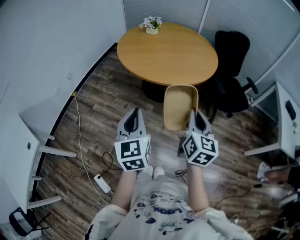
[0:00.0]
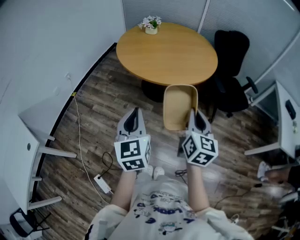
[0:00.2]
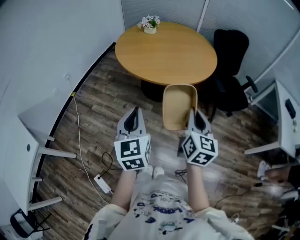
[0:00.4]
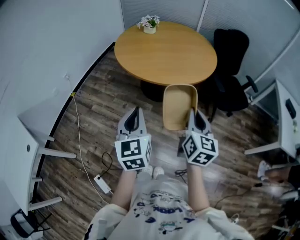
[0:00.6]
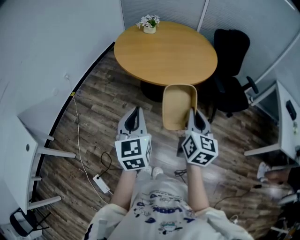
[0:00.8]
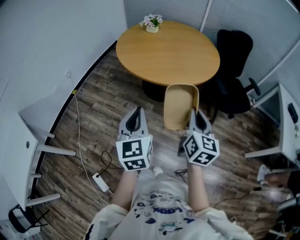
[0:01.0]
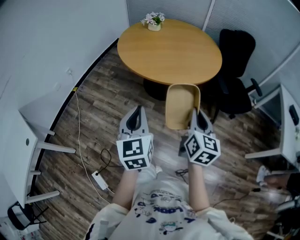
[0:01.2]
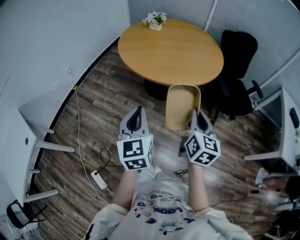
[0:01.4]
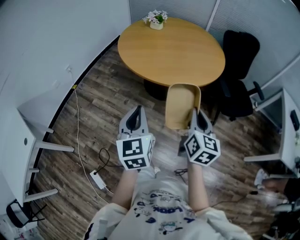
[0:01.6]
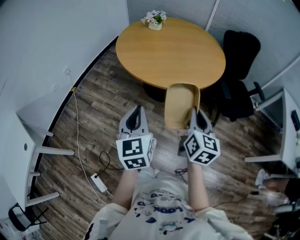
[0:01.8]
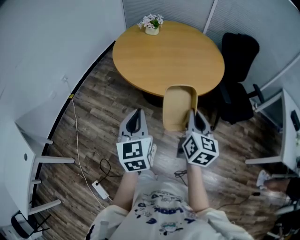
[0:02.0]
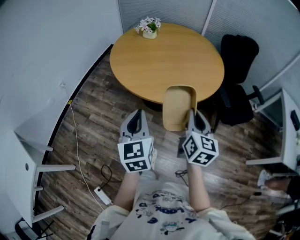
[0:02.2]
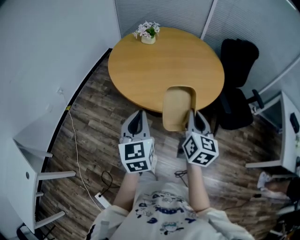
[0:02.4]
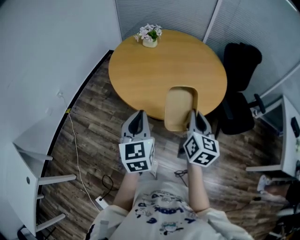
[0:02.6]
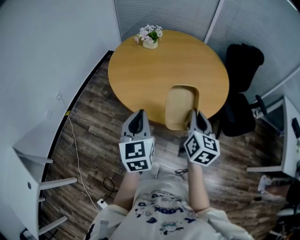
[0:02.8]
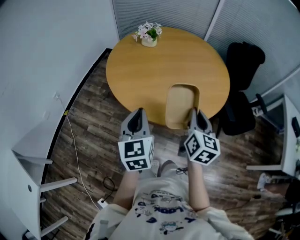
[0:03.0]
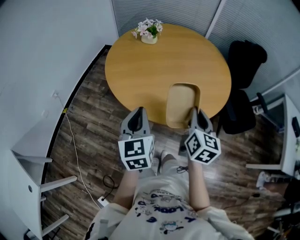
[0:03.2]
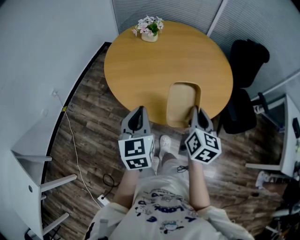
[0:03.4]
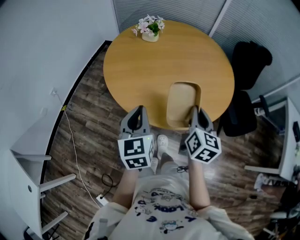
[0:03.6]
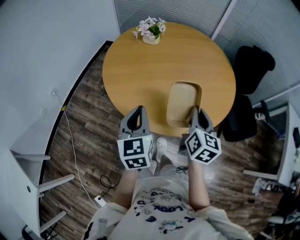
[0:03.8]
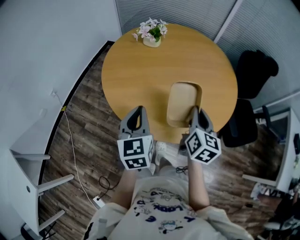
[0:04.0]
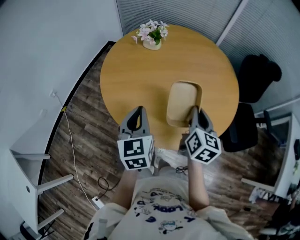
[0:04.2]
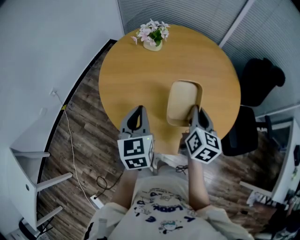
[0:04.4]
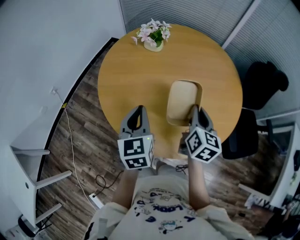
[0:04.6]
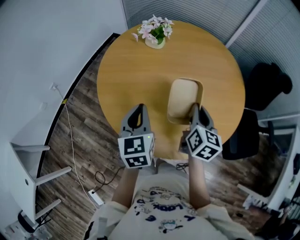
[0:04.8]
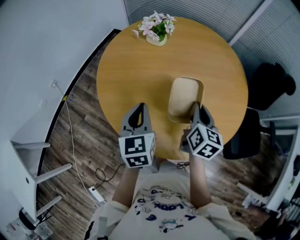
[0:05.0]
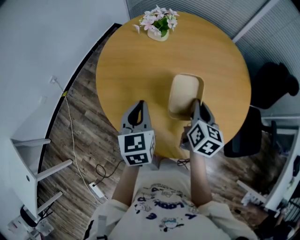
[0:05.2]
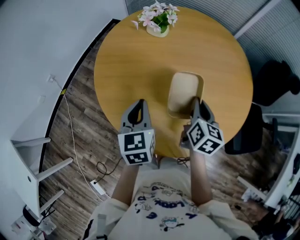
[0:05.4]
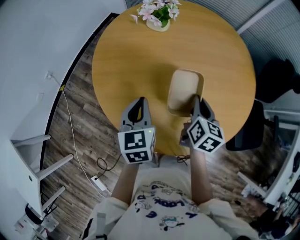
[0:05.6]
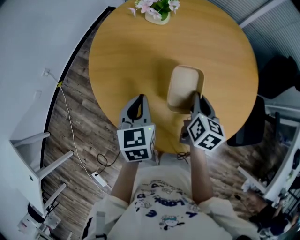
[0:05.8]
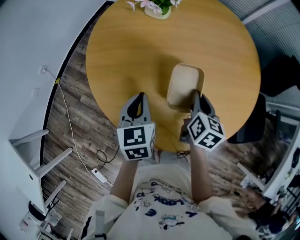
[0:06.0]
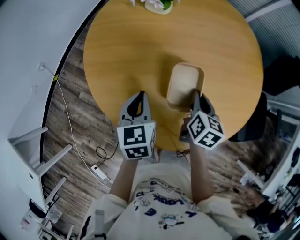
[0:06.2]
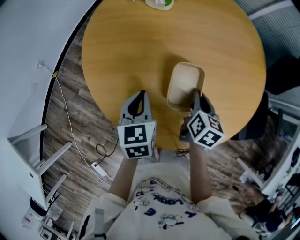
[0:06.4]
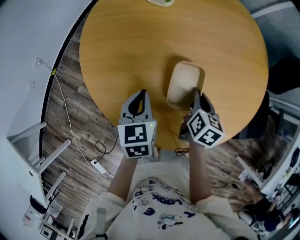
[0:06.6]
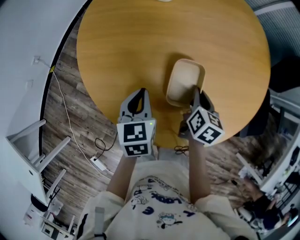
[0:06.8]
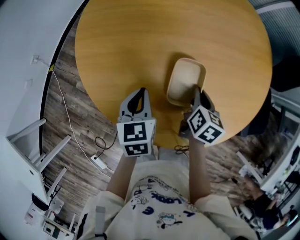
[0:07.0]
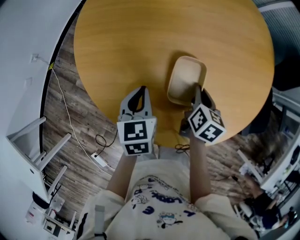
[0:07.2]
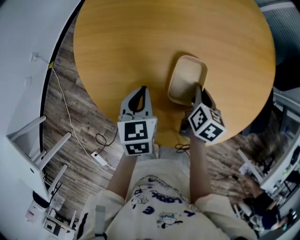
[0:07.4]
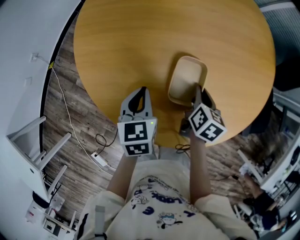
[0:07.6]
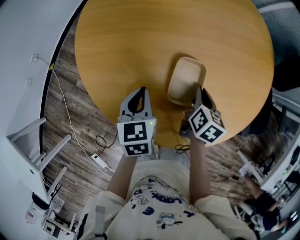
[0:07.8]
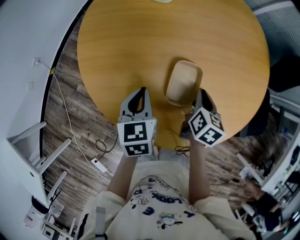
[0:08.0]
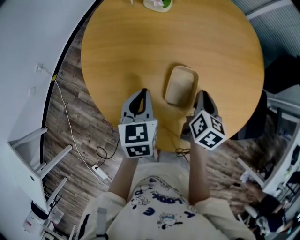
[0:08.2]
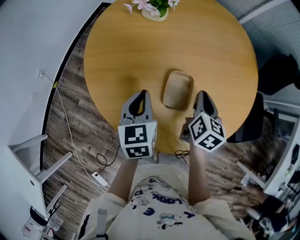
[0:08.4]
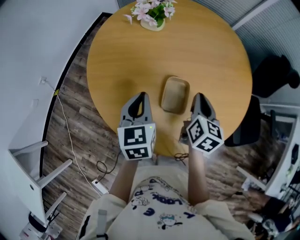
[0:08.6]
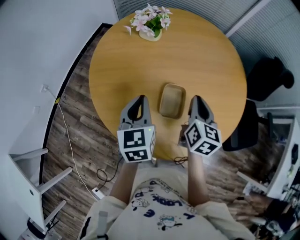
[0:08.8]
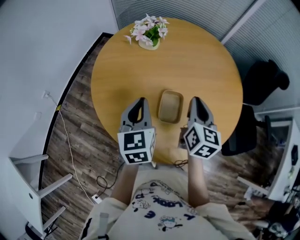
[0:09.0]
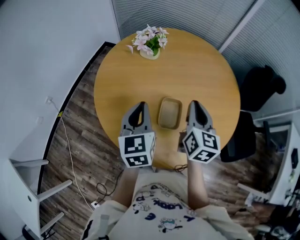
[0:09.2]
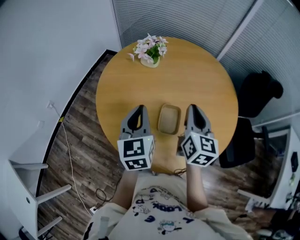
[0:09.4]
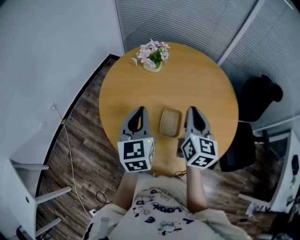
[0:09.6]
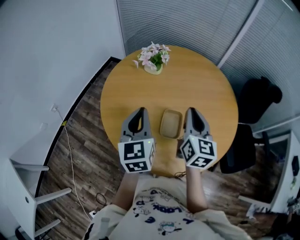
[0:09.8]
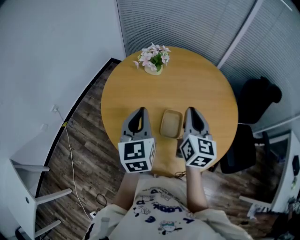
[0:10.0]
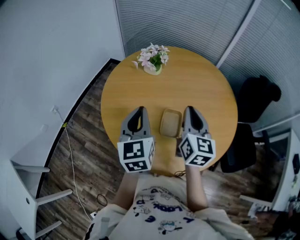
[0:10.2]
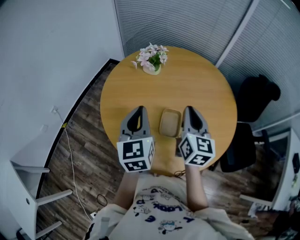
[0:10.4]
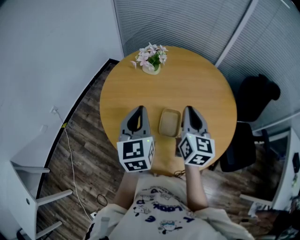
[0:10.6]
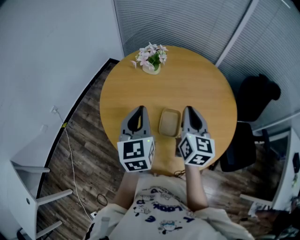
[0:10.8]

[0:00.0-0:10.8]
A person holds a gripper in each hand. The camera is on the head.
0:00.0 to 0:01.6: Both grippers move forward, approximately 5 cm.
0:01.6 to 0:03.0: The two grippers go approximately 25 cm forward.
0:03.0 to 0:04.6: The two grippers go about 20 cm forward.
0:04.6 to 0:06.2: The grippers both shift downward by some 15 cm.
0:06.2 to 0:07.8: The grippers both shift downward by roughly 5 cm.
0:07.8 to 0:09.2: The grippers both shift upward by about 20 cm. The right gripper tilts its fingers about 30 degrees upward, while the left gripper changes its angle by some 30 degrees.
0:09.2 to 0:10.8: The left gripper heads upward, covering roughly 5 cm.

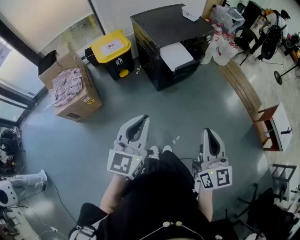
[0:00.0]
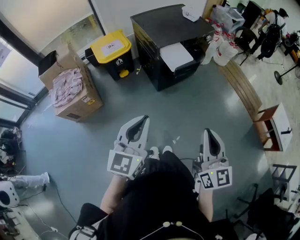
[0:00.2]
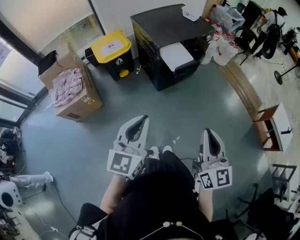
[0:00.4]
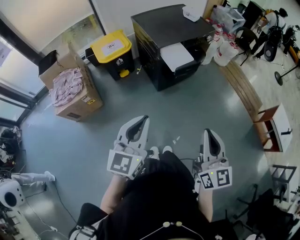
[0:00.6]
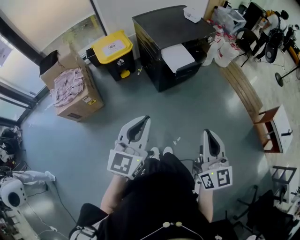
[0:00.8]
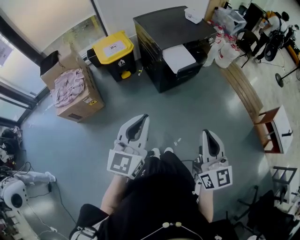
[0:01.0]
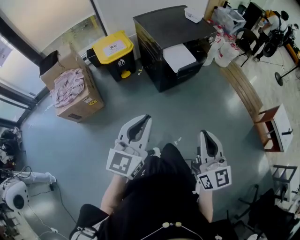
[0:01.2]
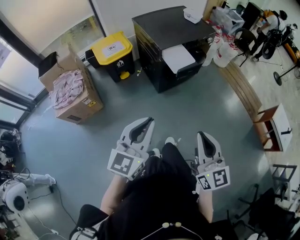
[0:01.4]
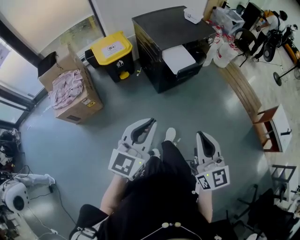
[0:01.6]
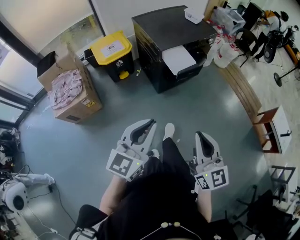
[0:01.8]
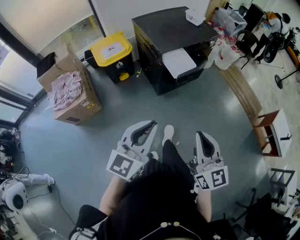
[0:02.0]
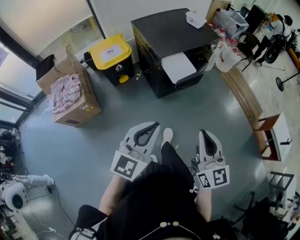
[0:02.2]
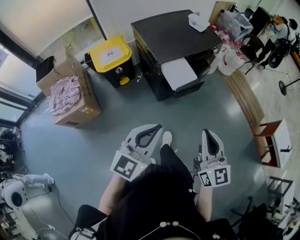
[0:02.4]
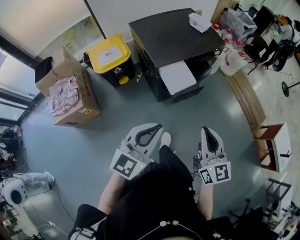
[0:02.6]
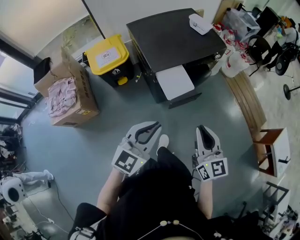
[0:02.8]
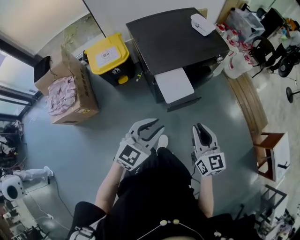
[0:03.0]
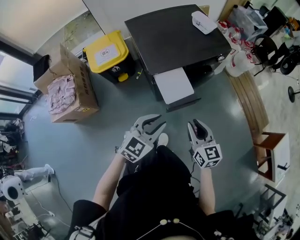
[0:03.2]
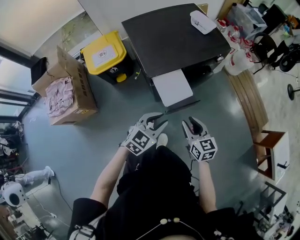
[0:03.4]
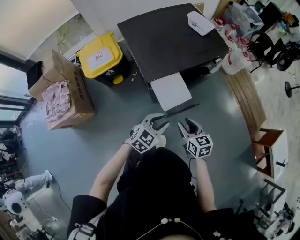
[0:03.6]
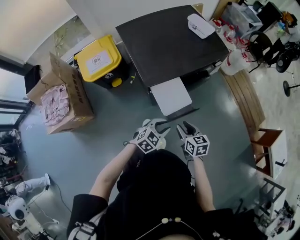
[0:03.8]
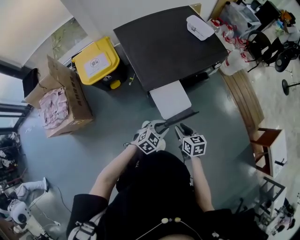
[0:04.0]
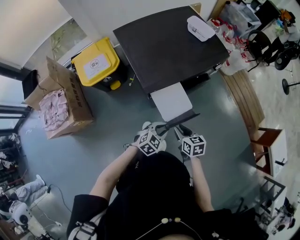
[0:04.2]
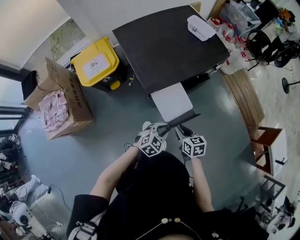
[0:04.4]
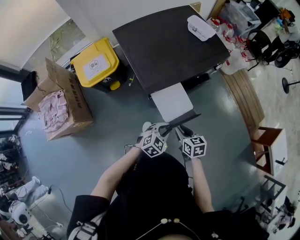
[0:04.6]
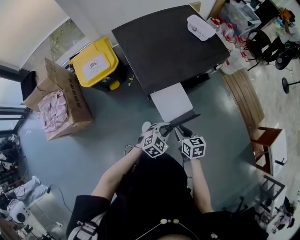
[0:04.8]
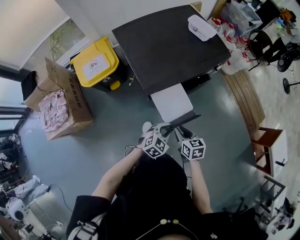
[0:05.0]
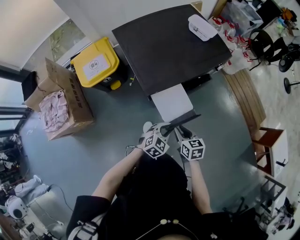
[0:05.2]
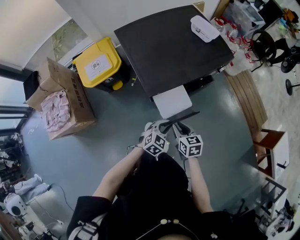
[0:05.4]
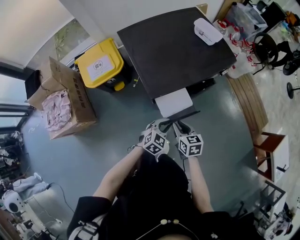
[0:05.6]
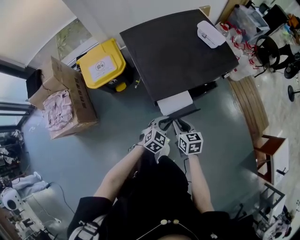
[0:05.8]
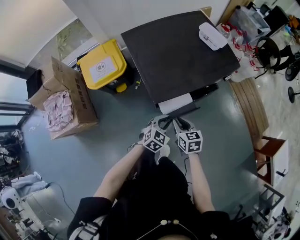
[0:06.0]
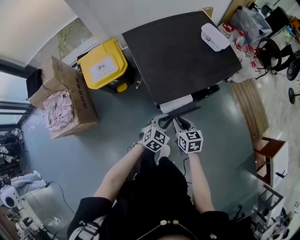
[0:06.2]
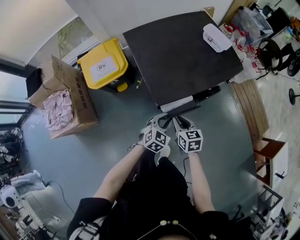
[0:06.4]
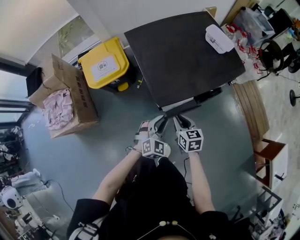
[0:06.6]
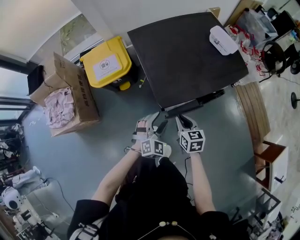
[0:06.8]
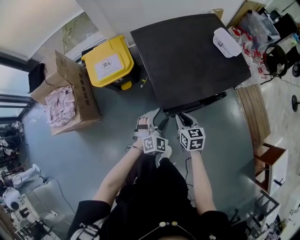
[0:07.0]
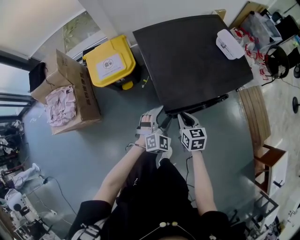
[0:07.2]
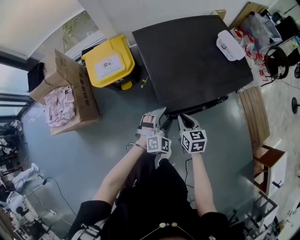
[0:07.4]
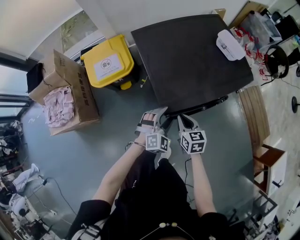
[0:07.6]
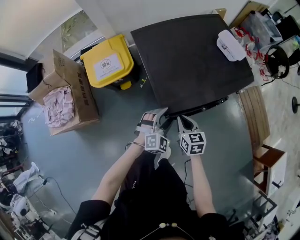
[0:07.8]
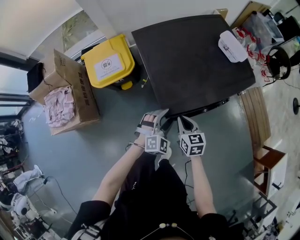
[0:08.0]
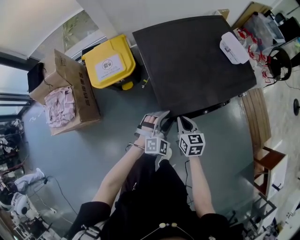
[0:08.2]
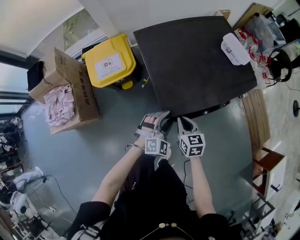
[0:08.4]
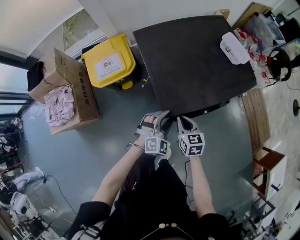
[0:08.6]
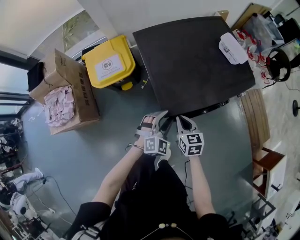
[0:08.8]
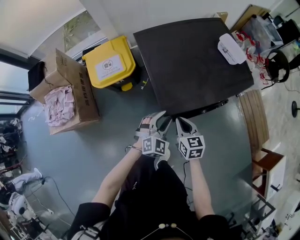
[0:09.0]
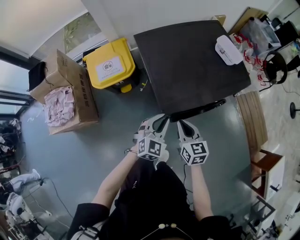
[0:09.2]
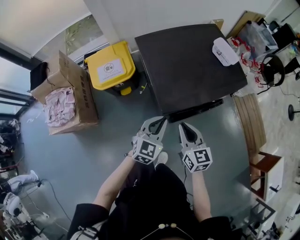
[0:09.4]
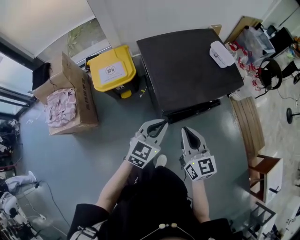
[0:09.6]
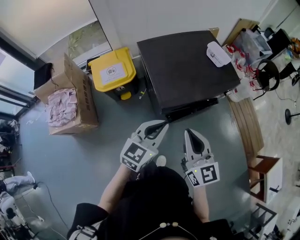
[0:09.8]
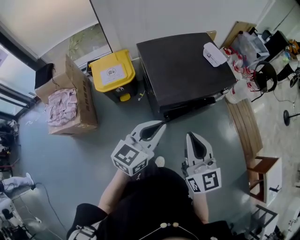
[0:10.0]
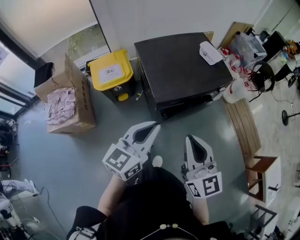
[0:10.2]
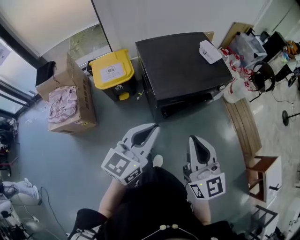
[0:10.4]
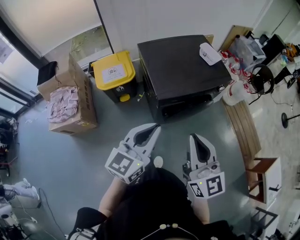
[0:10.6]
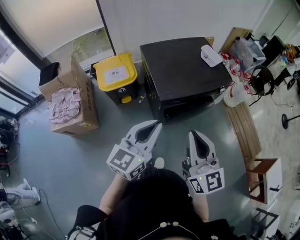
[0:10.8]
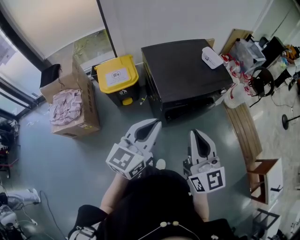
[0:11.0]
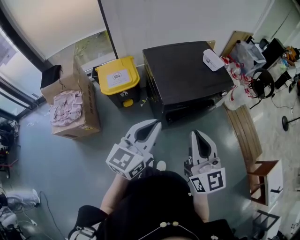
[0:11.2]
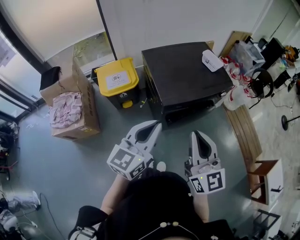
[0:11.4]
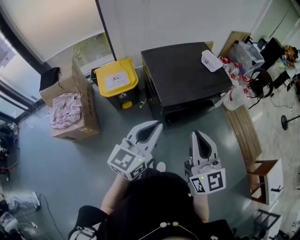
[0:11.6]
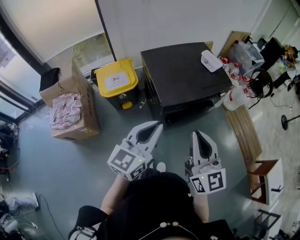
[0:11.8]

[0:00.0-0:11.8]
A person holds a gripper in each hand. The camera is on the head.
0:00.0 to 0:01.4: The grippers stay close to where they were, moving slightly.
0:01.4 to 0:03.0: The two grippers go approximately 30 cm forward.
0:03.0 to 0:04.4: The two grippers go some 25 cm downward and forward. The right gripper angles its fingers downward, by about 30 degrees; the left gripper rotates approximately 30 degrees.
0:04.4 to 0:06.0: The left gripper moves forward, approximately 10 cm. The right gripper is displaced forward and to the left by roughly 10 cm.
0:06.0 to 0:07.4: The left gripper heads forward and to the left, covering roughly 10 cm, changes its angle by about 30 degrees, and opens its fingers. Meanwhile the right gripper goes roughly 5 cm forward.
0:07.4 to 0:08.8: The left gripper closes its fingers.
0:08.8 to 0:10.4: Both grippers travel together upward and backward, about 40 cm. The right gripper angles its fingers upward, by roughly 40 degrees. Meanwhile the left gripper rotates around the line of its fingers by roughly 50 degrees, counterclockwise from behind, and closes.
0:10.4 to 0:11.8: The grippers move only a little.

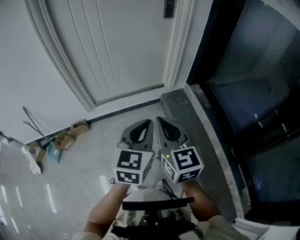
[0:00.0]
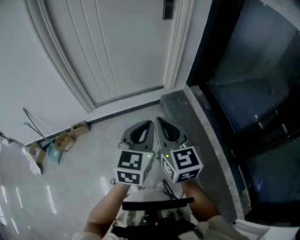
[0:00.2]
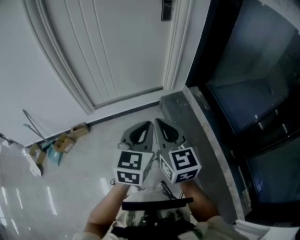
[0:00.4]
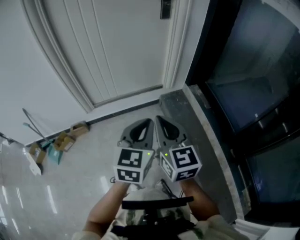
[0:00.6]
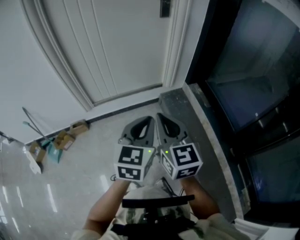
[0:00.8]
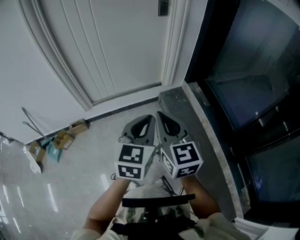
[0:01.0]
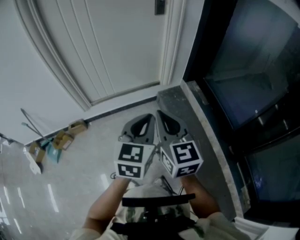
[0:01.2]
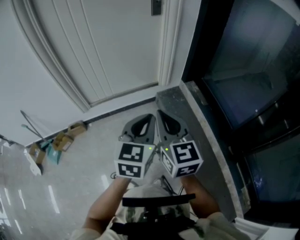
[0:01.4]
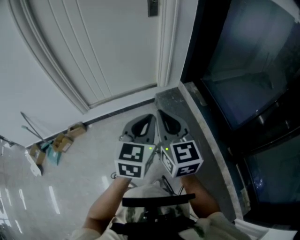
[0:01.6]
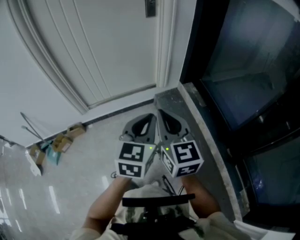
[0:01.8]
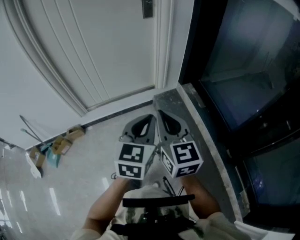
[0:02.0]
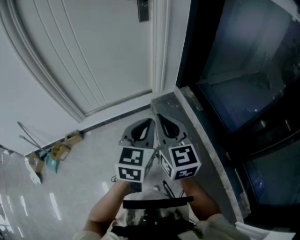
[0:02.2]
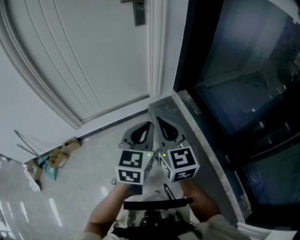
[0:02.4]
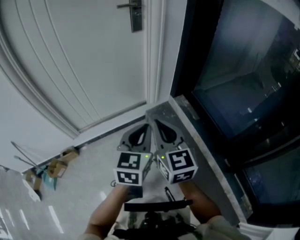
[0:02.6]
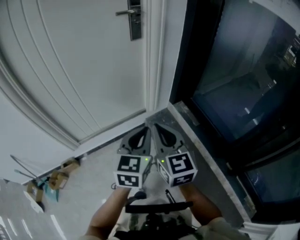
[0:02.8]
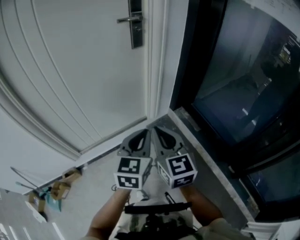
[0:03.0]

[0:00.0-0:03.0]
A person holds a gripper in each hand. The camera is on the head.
0:00.0 to 0:01.6: Both grippers move to the right, approximately 10 cm.
0:01.6 to 0:03.0: Both grippers travel together forward, about 20 cm.
